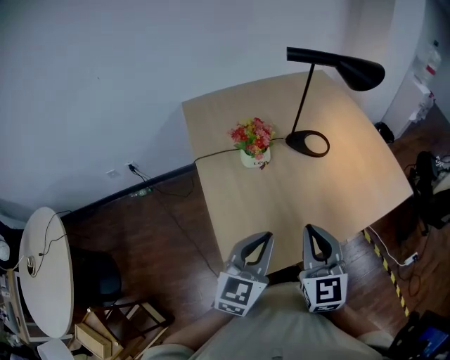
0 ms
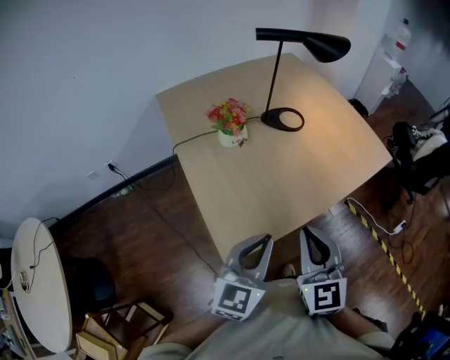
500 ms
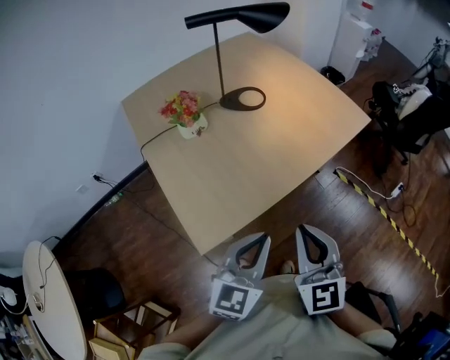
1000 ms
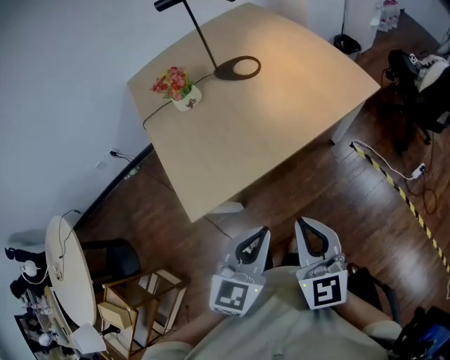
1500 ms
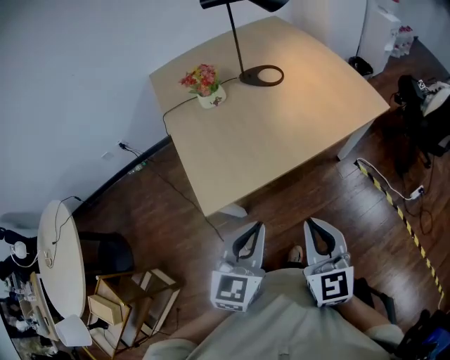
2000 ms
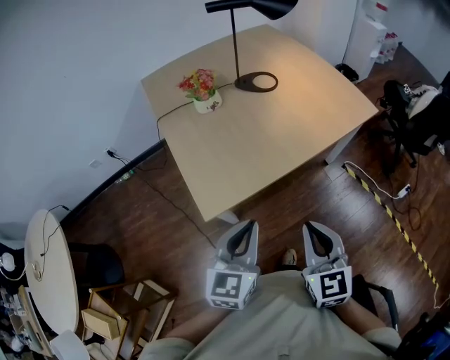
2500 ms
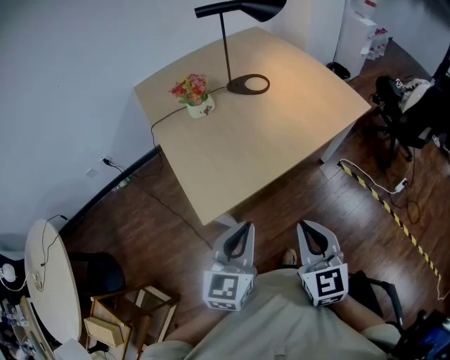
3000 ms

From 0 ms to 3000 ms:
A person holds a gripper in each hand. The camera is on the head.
From 0 ms to 1500 ms: The two grippers go approximately 25 cm to the right and backward.
From 1500 ms to 3000 ms: The right gripper heads to the left, covering about 5 cm. Meanwhile the left gripper shifts about 10 cm to the left.

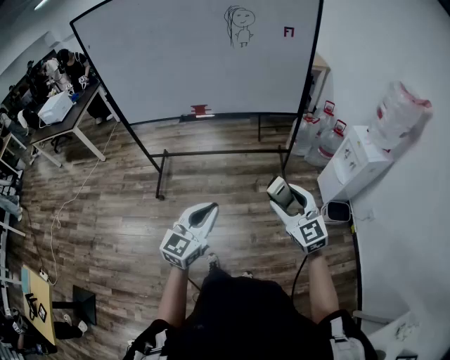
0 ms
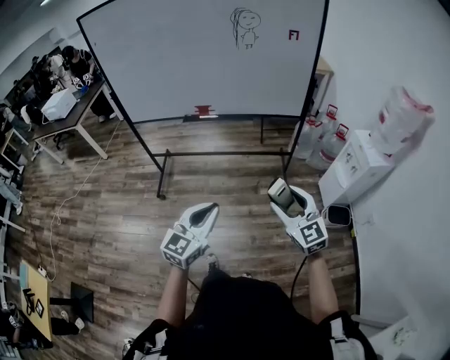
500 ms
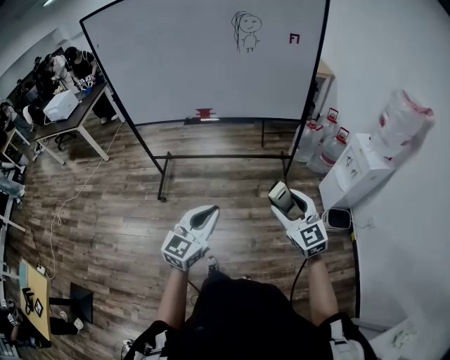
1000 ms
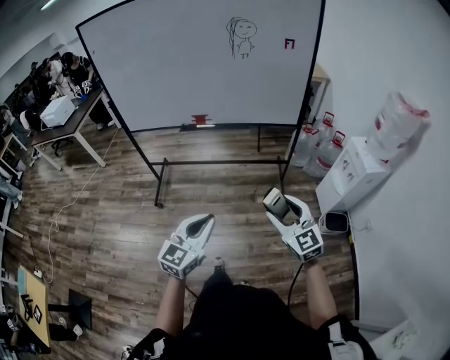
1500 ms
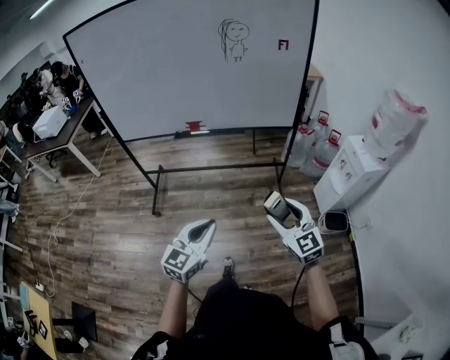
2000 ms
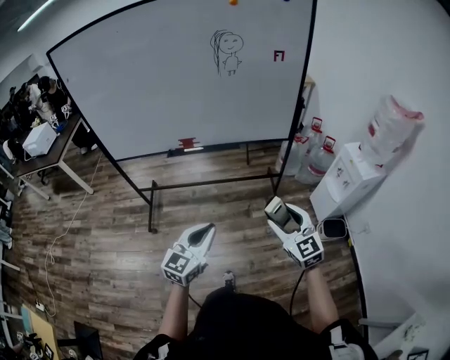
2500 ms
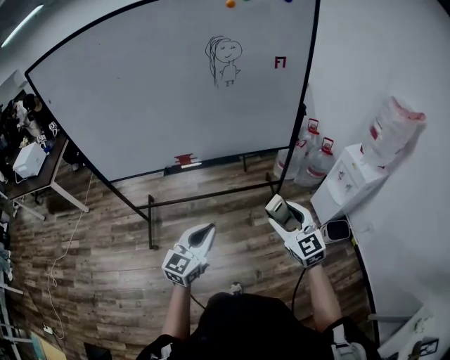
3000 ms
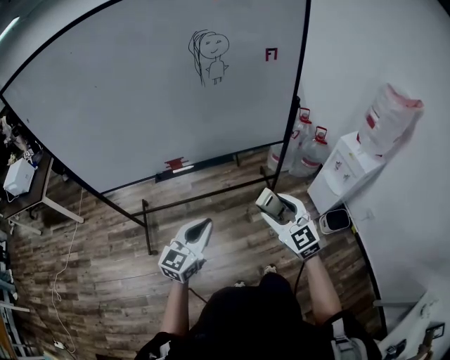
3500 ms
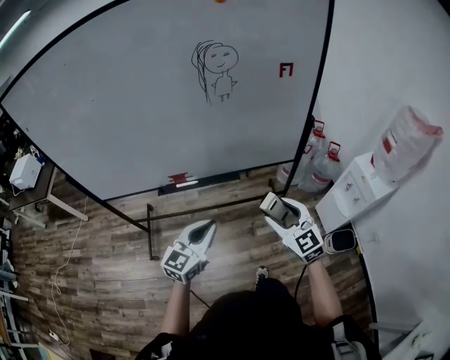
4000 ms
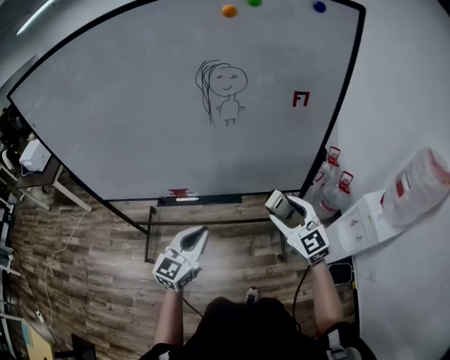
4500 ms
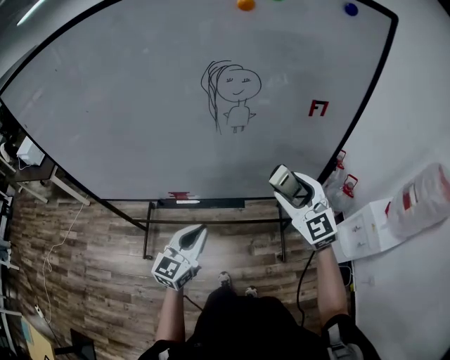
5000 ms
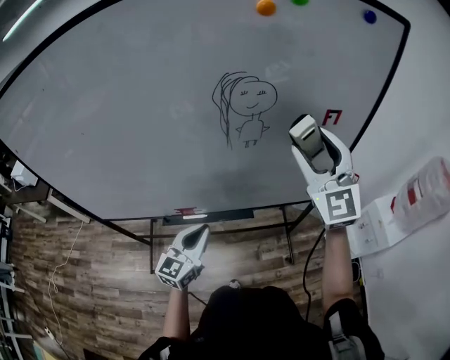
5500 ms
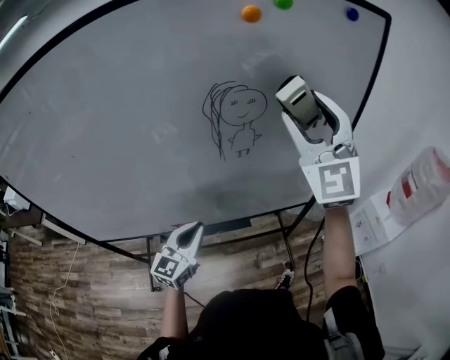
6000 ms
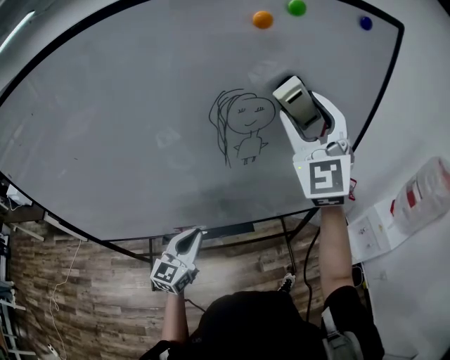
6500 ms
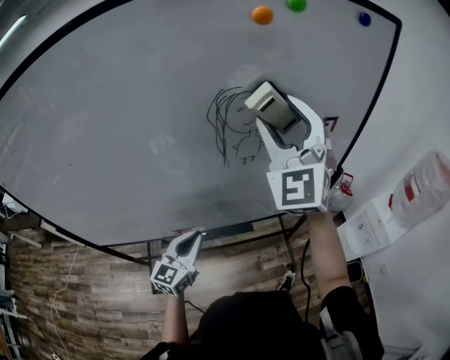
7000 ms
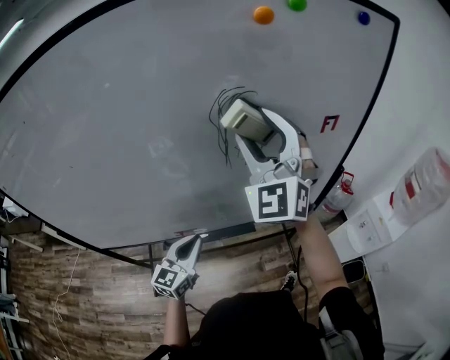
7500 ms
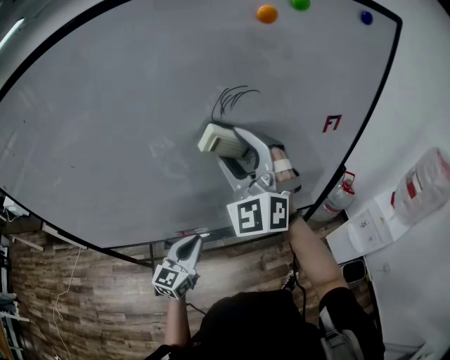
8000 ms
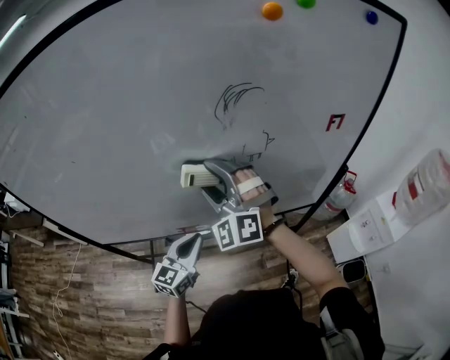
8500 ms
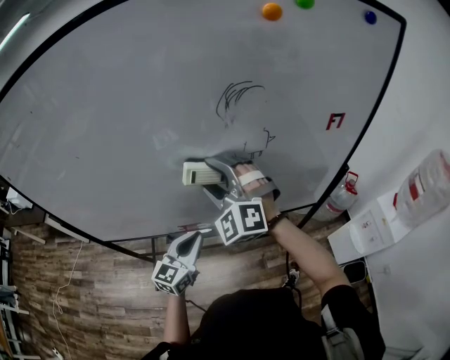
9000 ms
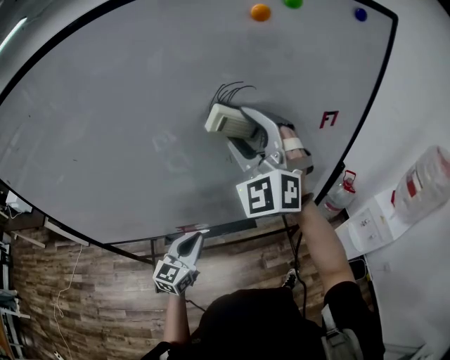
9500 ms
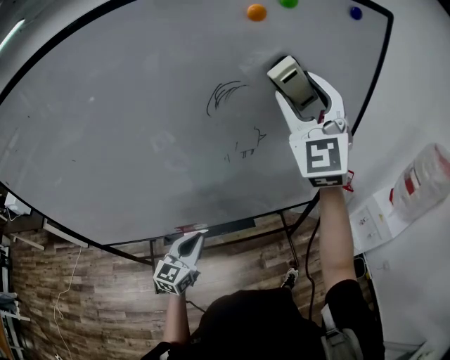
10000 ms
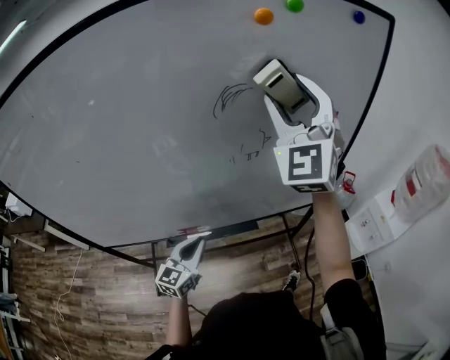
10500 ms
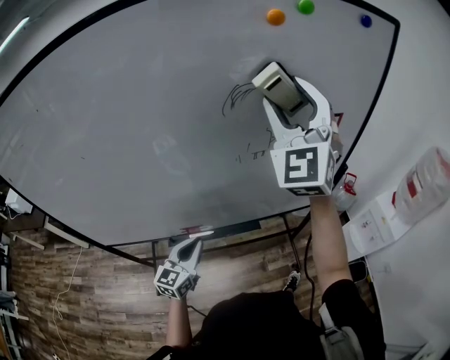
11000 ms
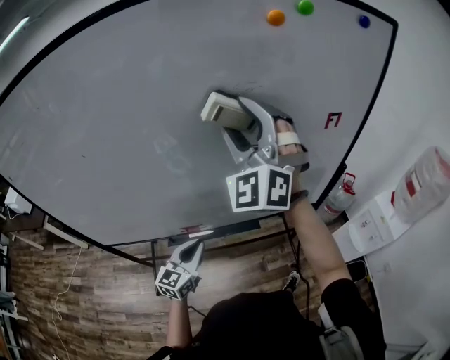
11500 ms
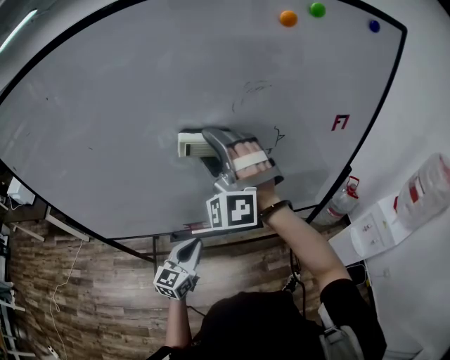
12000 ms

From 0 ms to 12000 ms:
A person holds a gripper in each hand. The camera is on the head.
From 0 ms to 2000 ms: The grippers stay close to where they were, moving slightly.
From 2000 ms to 4000 ms: The two grippers go some 35 cm forward.
From 4000 ms to 6000 ms: The right gripper is displaced upward and forward by roughly 50 cm, and changes its angle by about 40 degrees. The left gripper travels forward by approximately 25 cm.
From 6000 ms to 8000 ms: The left gripper changes place by about 5 cm. The right gripper shifts approximately 20 cm to the left and downward.
From 8000 ms to 10000 ms: The right gripper heads to the right and upward, covering approximately 20 cm.
From 10000 ms to 12000 ms: The right gripper goes roughly 25 cm to the left and downward, and rotates roughly 40 degrees, while the left gripper shifts by roughly 5 cm.

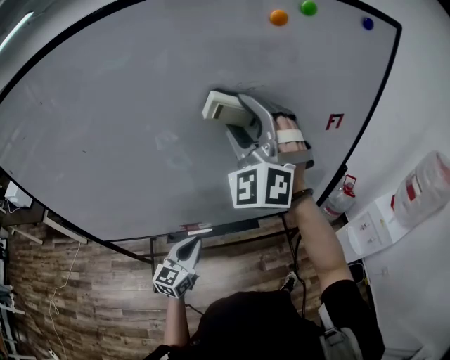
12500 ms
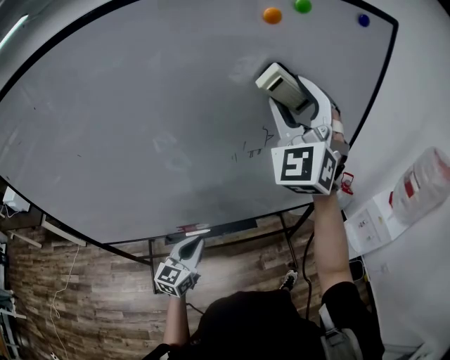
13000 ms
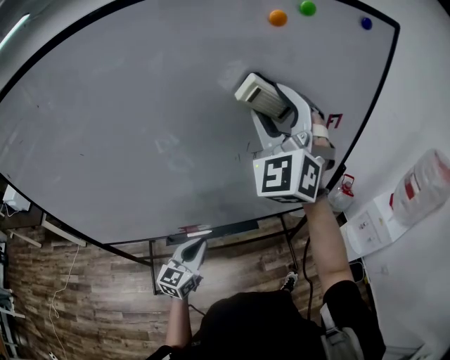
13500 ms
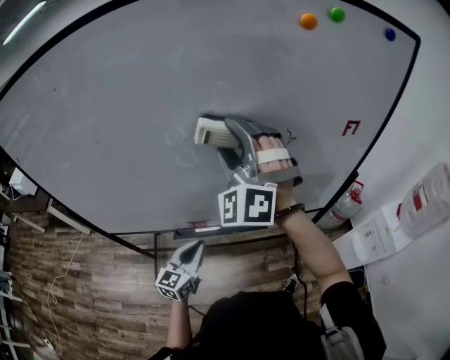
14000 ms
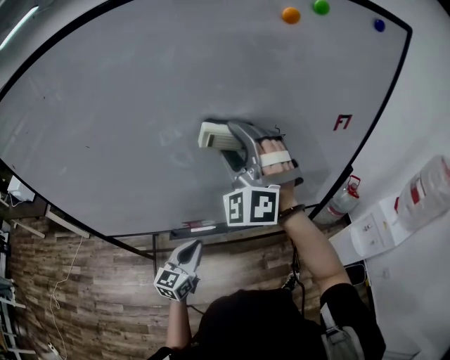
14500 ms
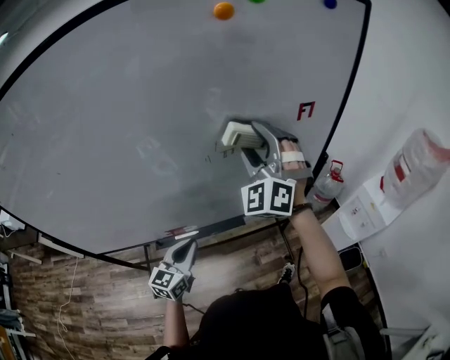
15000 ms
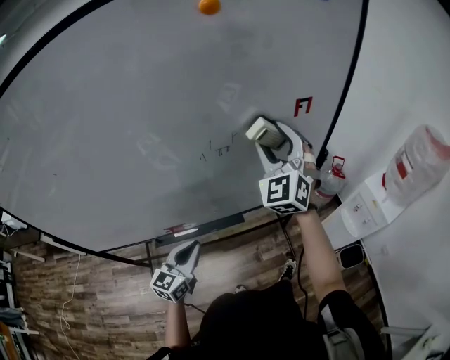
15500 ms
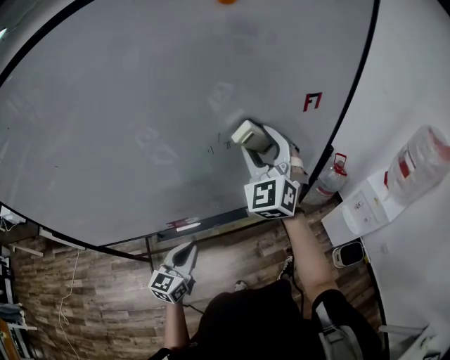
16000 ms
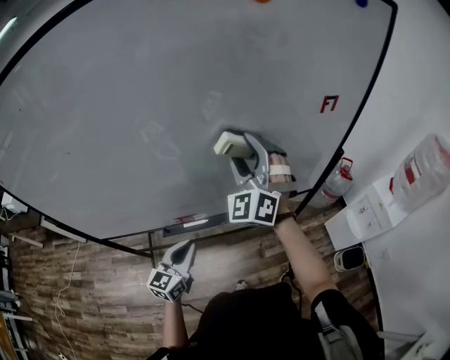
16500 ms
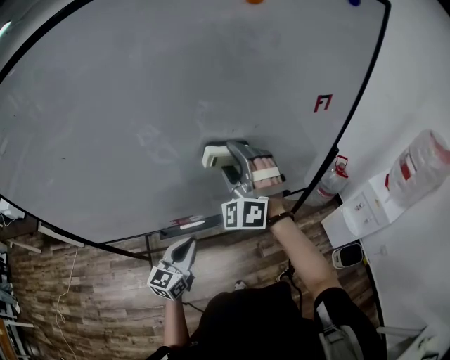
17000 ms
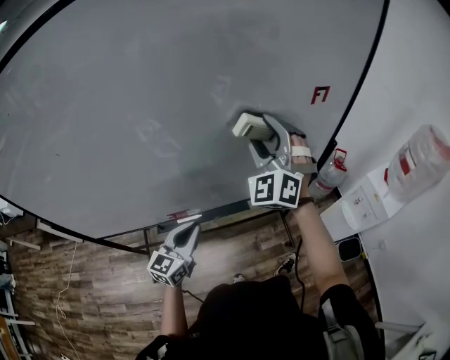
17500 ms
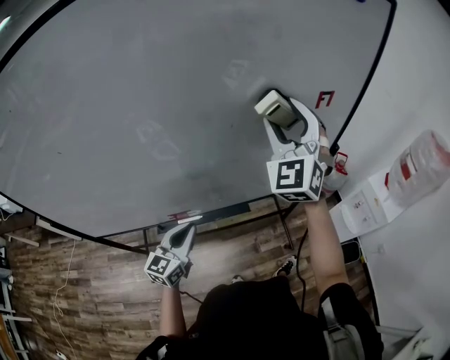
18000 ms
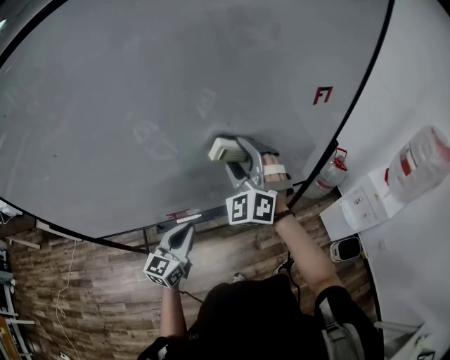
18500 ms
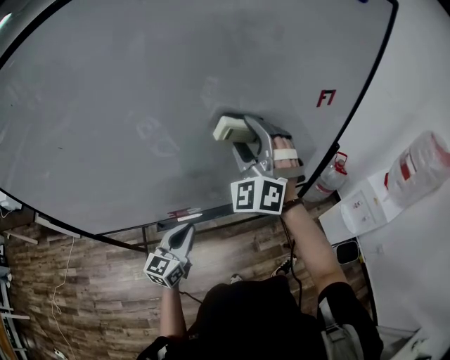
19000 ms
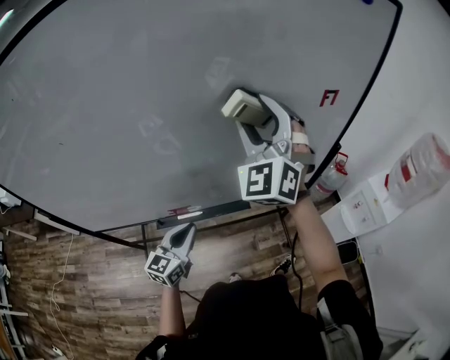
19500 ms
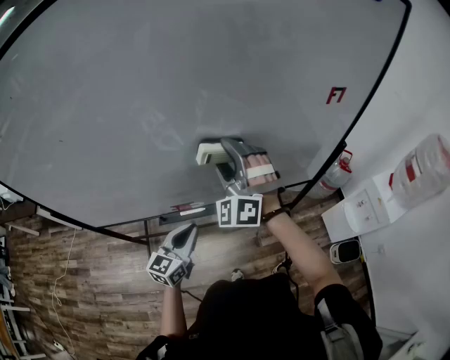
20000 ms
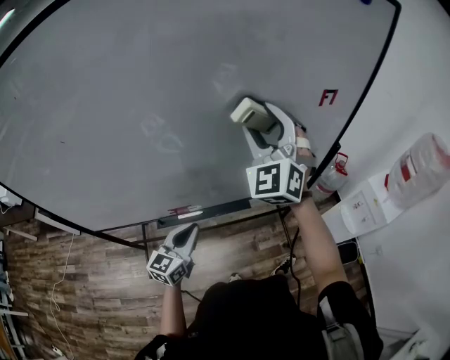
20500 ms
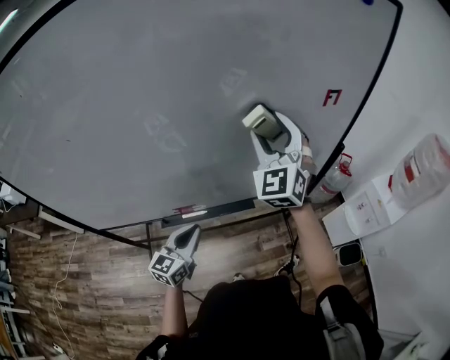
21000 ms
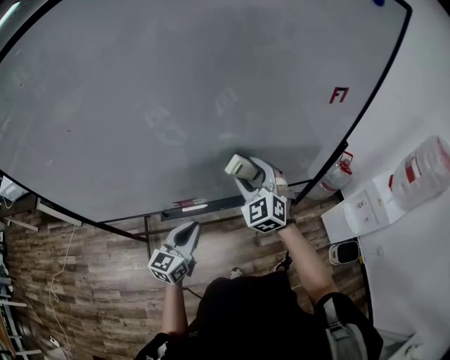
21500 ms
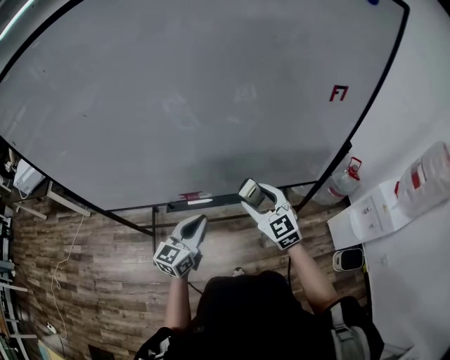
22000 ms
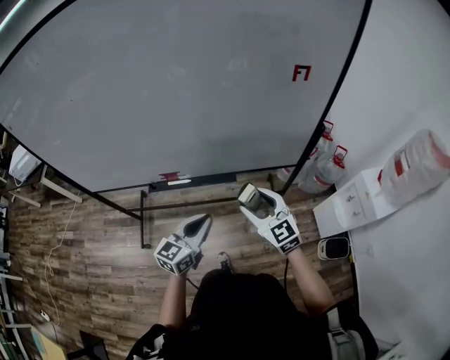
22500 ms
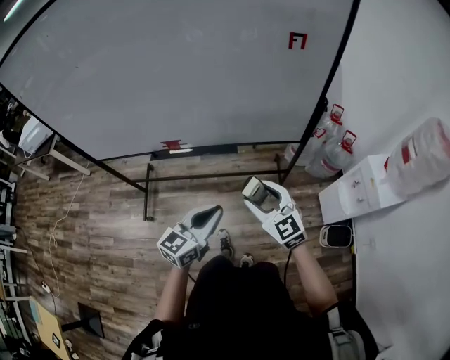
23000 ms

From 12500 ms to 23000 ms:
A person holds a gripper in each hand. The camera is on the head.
From 12500 ms to 14500 ms: The right gripper is displaced downward by some 5 cm, and goes to the right and returns, about 10 cm each way.
From 14500 ms to 16500 ms: The right gripper travels downward by about 10 cm, and reaches about 20 cm to the right, then returns. Meanwhile the left gripper goes to the right and returns, about 10 cm each way.
From 16500 ms to 19000 ms: The right gripper travels to the right and back again, some 10 cm each way.
From 19000 ms to 21000 ms: The right gripper swings up and down, some 15 cm each way, with 2 reversals.
From 21000 ms to 23000 ms: The left gripper heads to the right and backward, covering approximately 25 cm; the right gripper travels backward and downward by approximately 35 cm, and changes its angle by some 50 degrees.

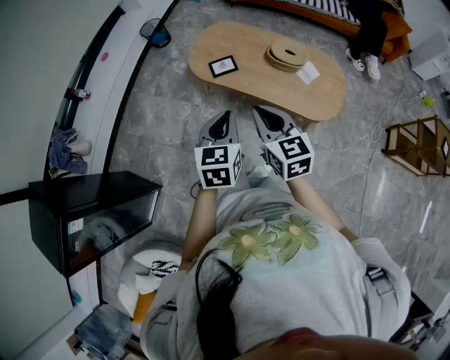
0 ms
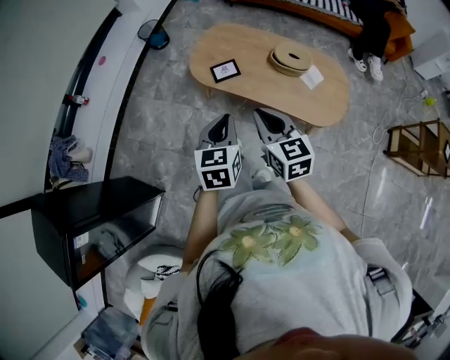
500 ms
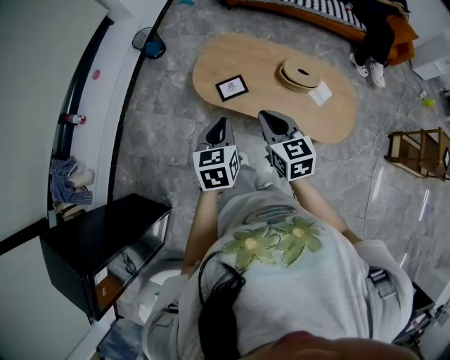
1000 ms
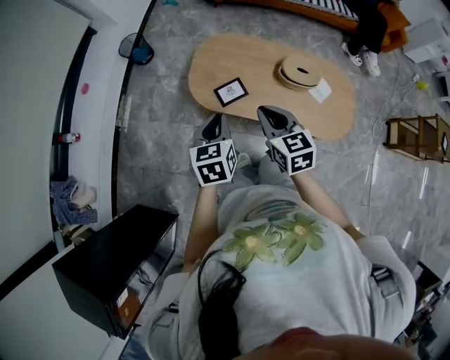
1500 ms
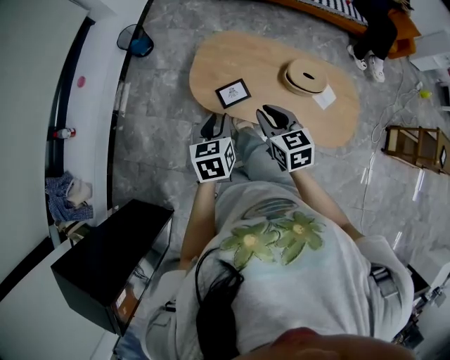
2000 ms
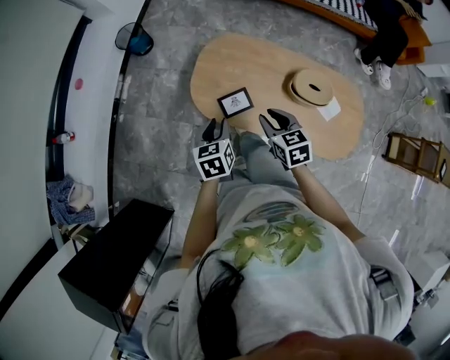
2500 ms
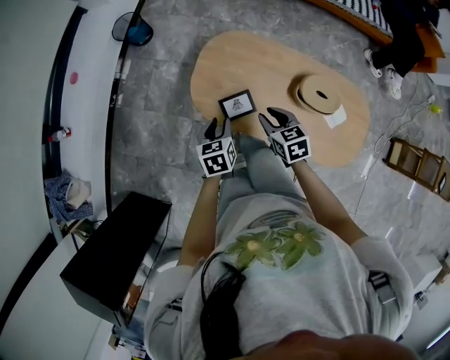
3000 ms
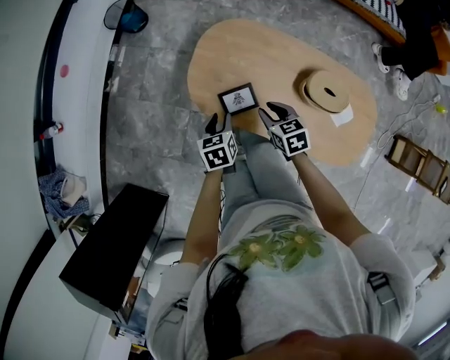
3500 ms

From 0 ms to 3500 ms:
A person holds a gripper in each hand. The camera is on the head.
From 0 ms to 2000 ms: The right gripper moves forward and downward, roughly 30 cm, while the left gripper moves forward, roughly 30 cm, and opens.
From 2000 ms to 3500 ms: Both grippers move downward and forward, some 25 cm. The right gripper turns by approximately 20 degrees.
